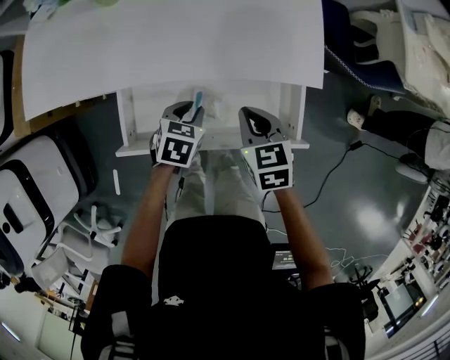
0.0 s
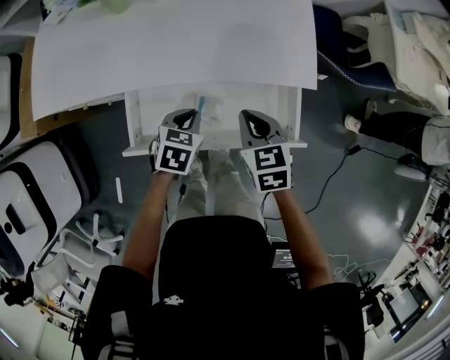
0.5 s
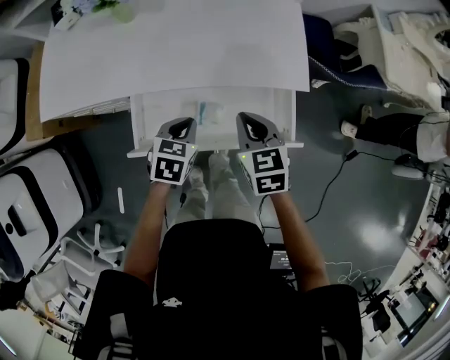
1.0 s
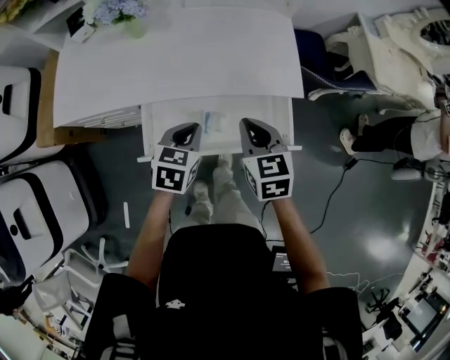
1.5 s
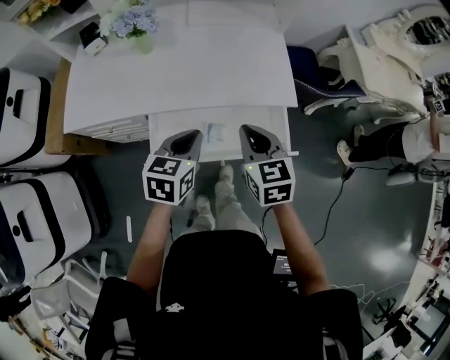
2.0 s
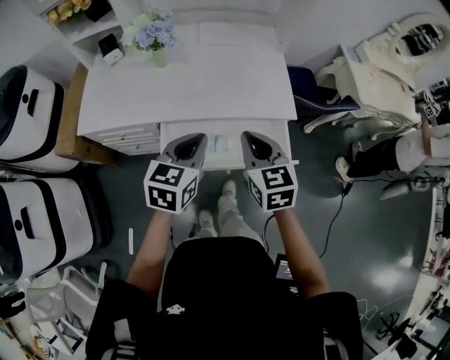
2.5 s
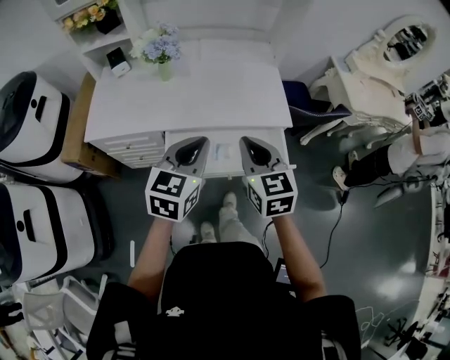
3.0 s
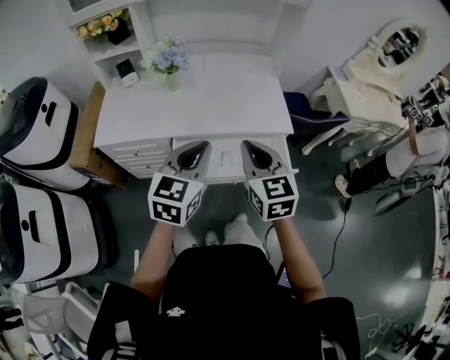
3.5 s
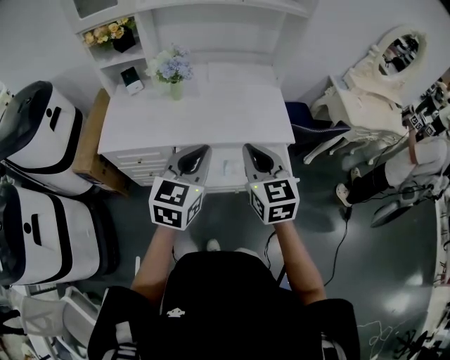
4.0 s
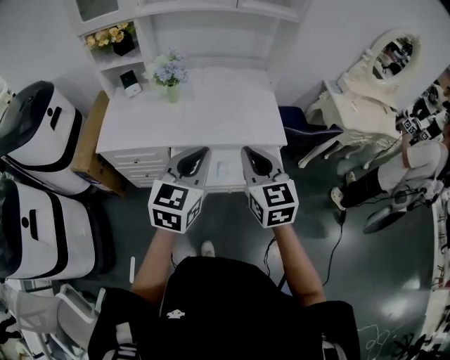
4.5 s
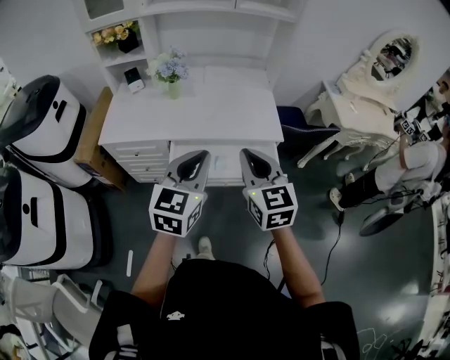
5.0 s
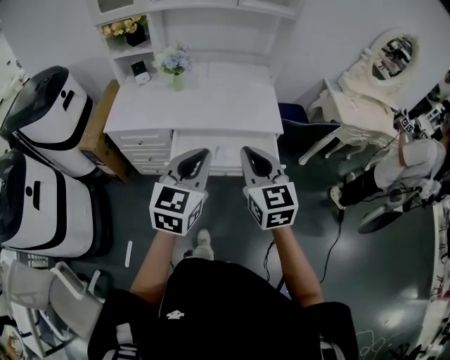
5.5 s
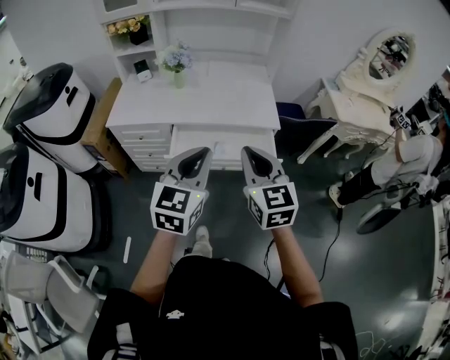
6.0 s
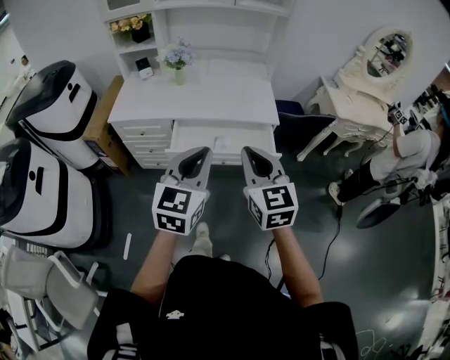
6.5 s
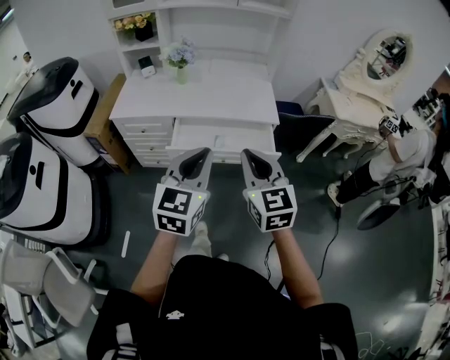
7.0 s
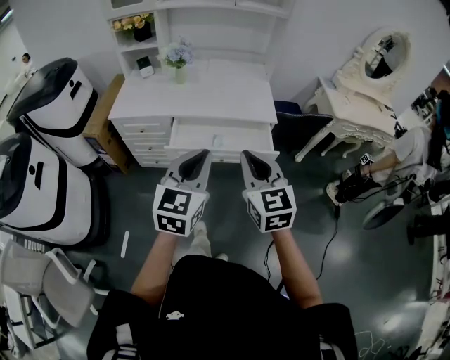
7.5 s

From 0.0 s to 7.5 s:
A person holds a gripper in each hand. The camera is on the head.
From 0.0 s to 2.0 s: Both grippers travel together upward, about 20 cm. The right gripper turns by roughly 20 degrees. Meanwhile the left gripper swivels approximately 20 degrees.
From 2.0 s to 4.0 s: Both grippers travel together upward and backward, about 20 cm. The left gripper turns by approximately 30 degrees.
From 4.0 s to 5.5 s: Both grippers travel together backward and to the right, approximately 15 cm.
From 5.5 s to 7.5 s: The grippers both shift backward by approximately 10 cm.

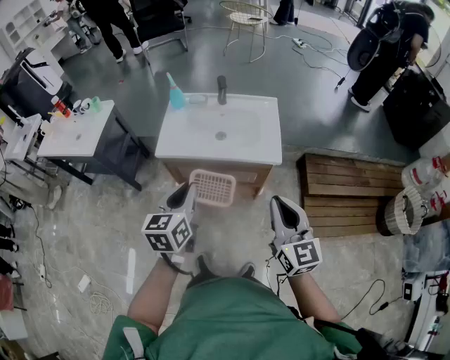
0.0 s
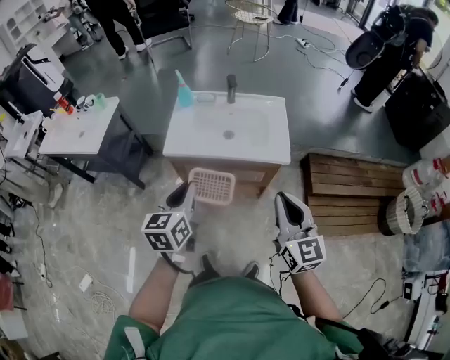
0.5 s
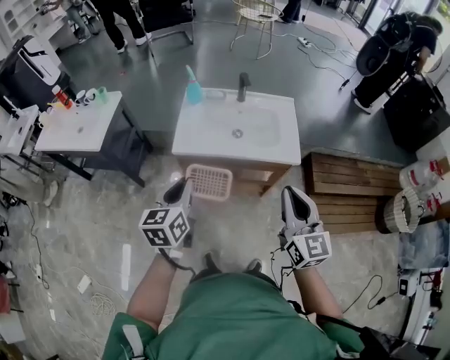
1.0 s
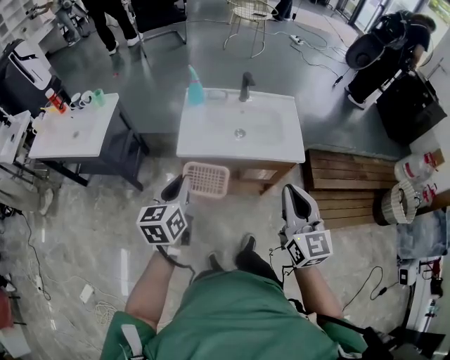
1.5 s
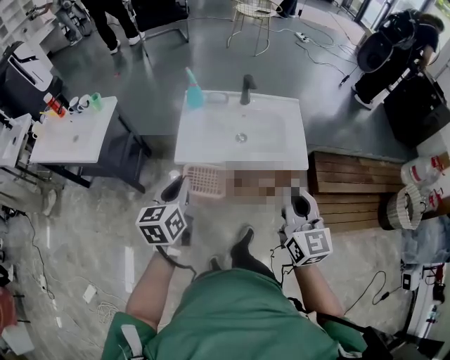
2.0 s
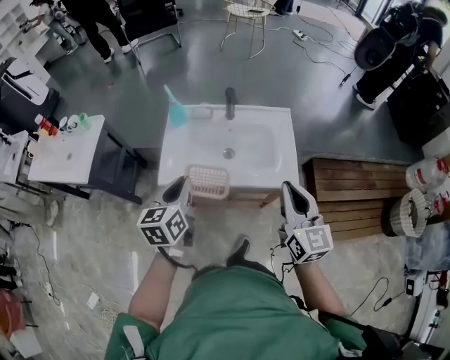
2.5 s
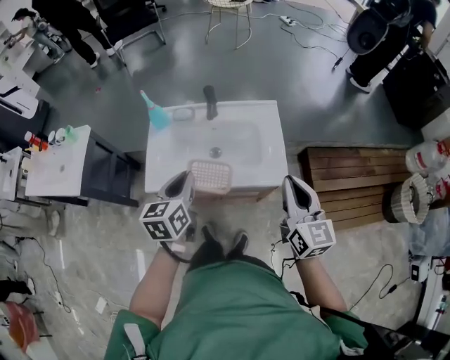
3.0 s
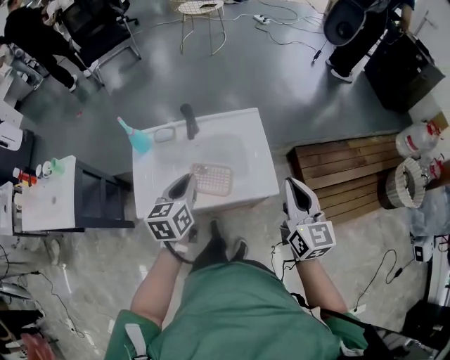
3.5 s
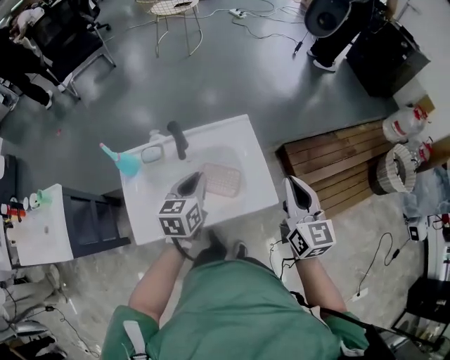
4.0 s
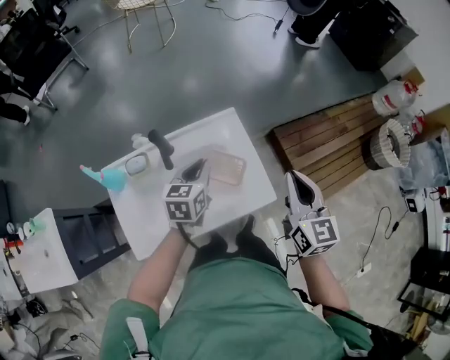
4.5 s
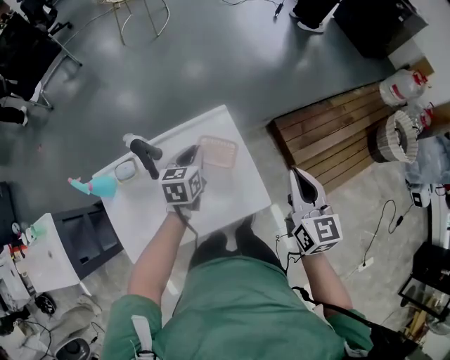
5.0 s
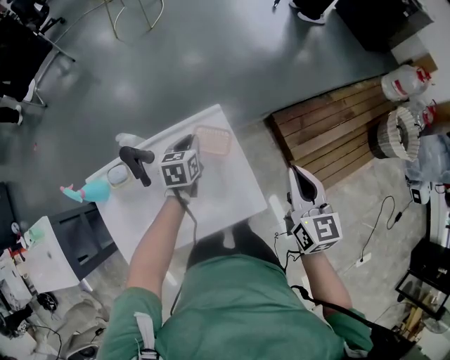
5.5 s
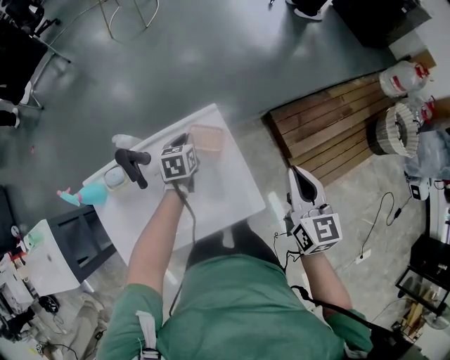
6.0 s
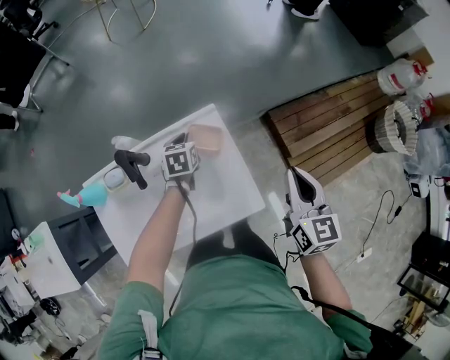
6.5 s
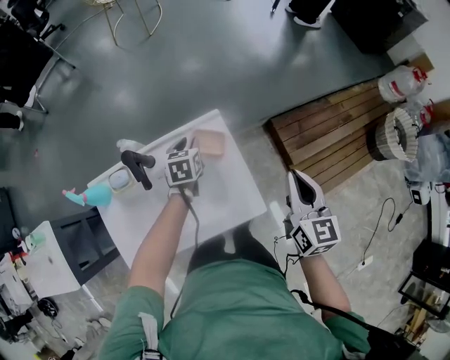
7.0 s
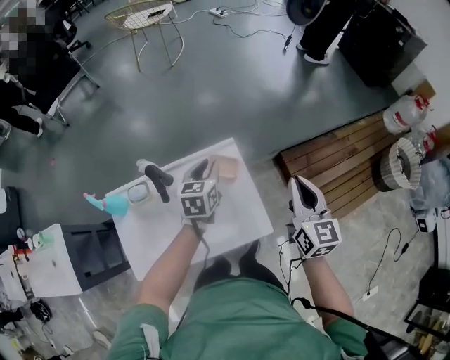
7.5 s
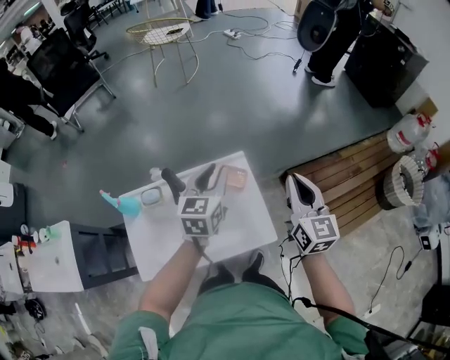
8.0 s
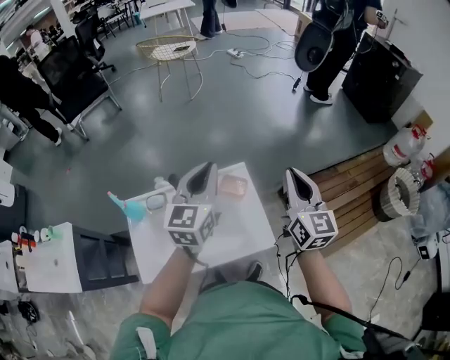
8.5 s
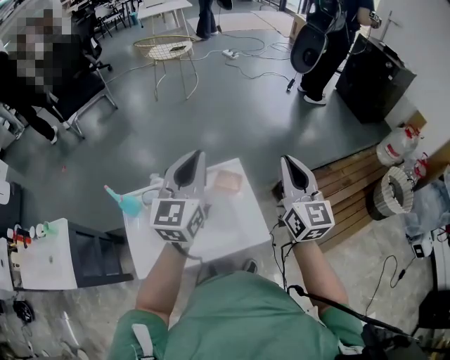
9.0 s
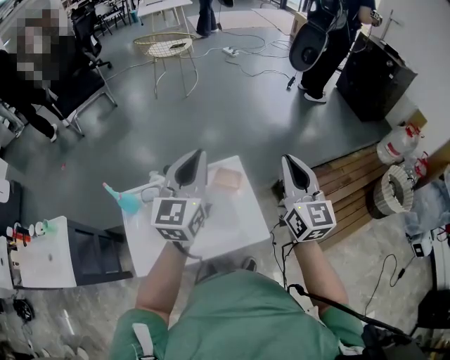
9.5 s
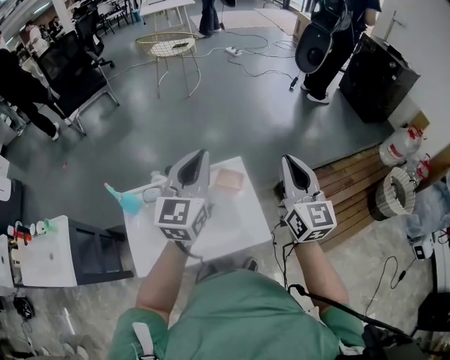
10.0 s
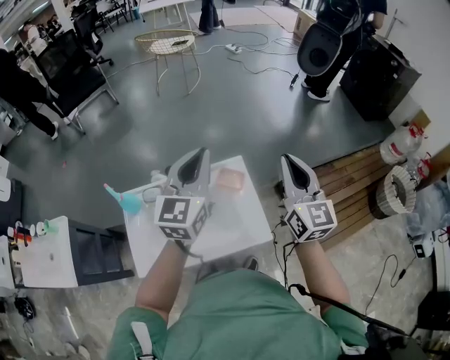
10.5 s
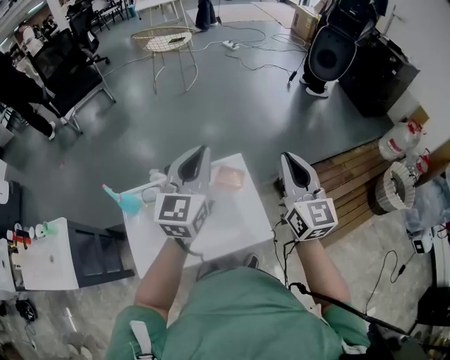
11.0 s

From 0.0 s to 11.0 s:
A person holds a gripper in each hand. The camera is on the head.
From 0.0 s to 2.0 s: The grippers both shift to the left and forward by some 20 cm.
From 2.0 s to 3.5 s: Both grippers travel together forward and to the right, some 35 cm.
From 3.5 s to 5.5 s: The left gripper travels forward and downward by approximately 40 cm, and swivels about 20 degrees; the right gripper heads forward and downward, covering roughly 25 cm.
From 5.5 s to 7.5 s: The right gripper moves upward, approximately 5 cm. Meanwhile the left gripper goes approximately 10 cm upward.
From 7.5 s to 9.0 s: The left gripper moves upward and backward, some 30 cm, angles its fingers upward, by about 30 degrees, and closes its fingers; the right gripper shifts approximately 15 cm upward.
From 9.0 s to 11.0 s: The grippers make only small movements.

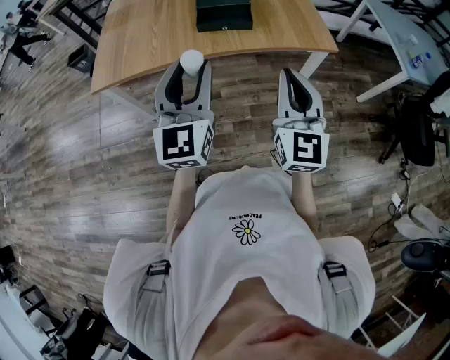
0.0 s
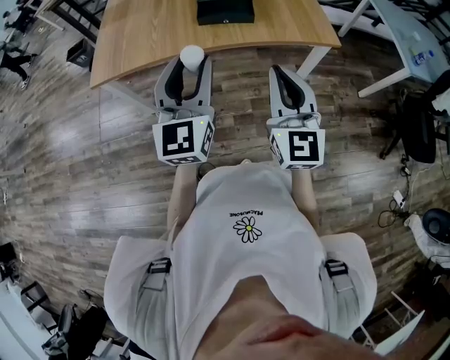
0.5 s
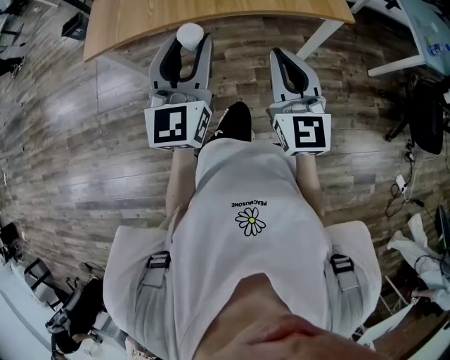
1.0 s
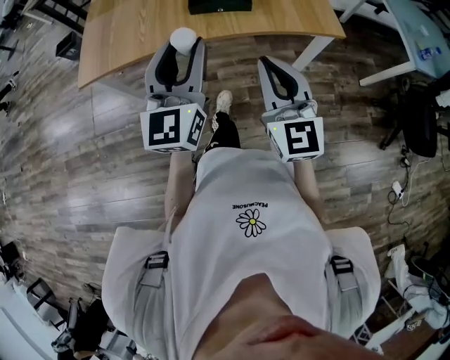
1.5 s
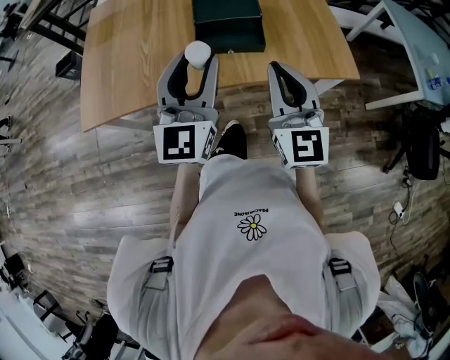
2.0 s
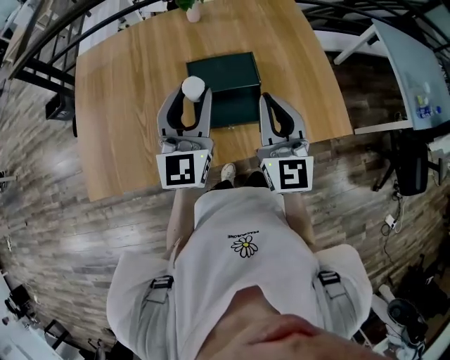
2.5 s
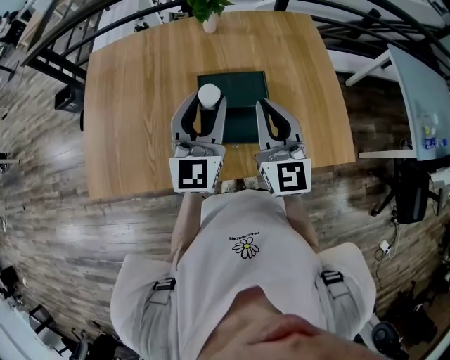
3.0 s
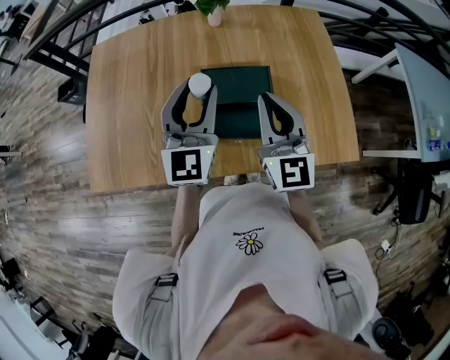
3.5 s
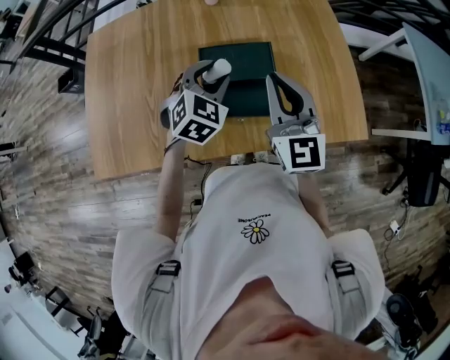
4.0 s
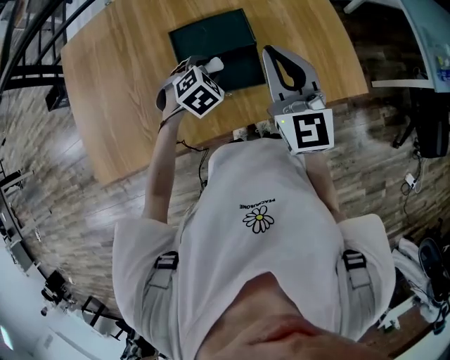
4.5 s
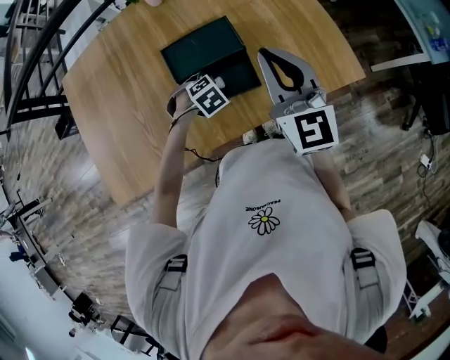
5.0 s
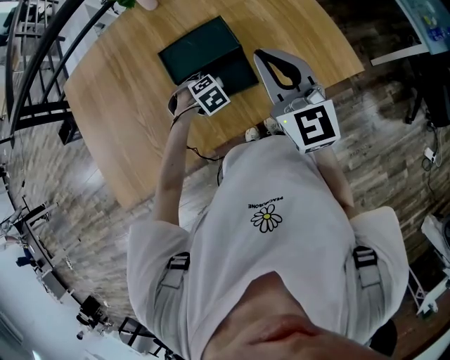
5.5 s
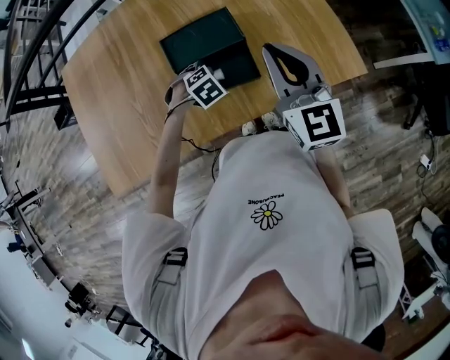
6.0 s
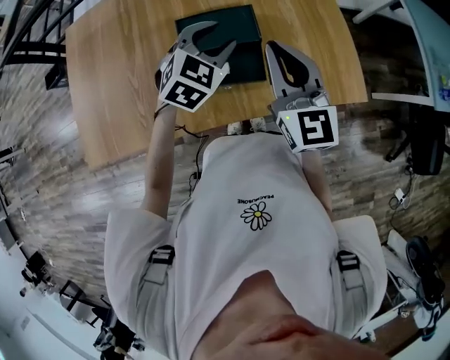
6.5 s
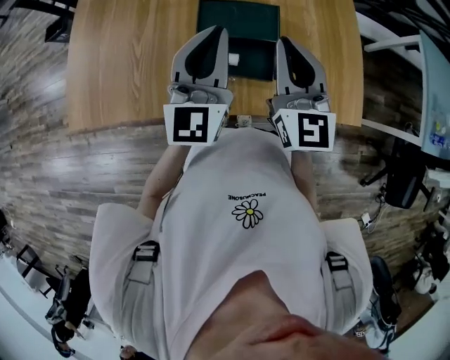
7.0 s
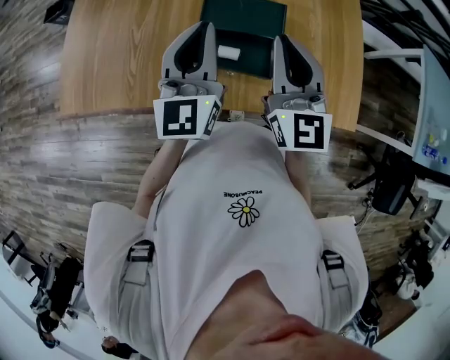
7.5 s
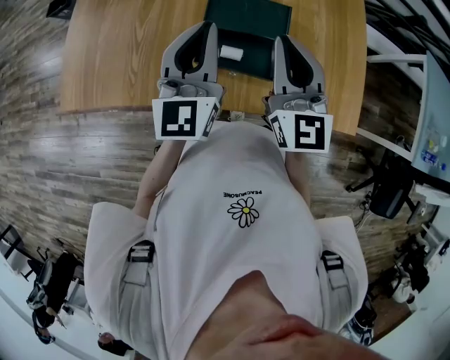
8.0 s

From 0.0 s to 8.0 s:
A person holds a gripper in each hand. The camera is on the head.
From 0.0 s to 2.0 s: The two grippers go about 20 cm forward.
From 2.0 s to 4.0 s: The right gripper heads forward, covering some 25 cm. Meanwhile the left gripper goes roughly 30 cm forward and downward, and angles its fingers downward, by about 50 degrees.
From 4.0 s to 6.0 s: The left gripper travels downward by roughly 20 cm, and angles its fingers downward, by about 40 degrees, while the right gripper ends up roughly 10 cm from where it was.
From 6.0 s to 8.0 s: The right gripper moves roughly 10 cm. The left gripper shifts approximately 30 cm upward, tilts its fingers approximately 80 degrees upward, and closes its fingers.
